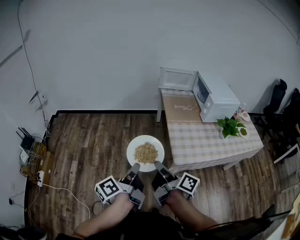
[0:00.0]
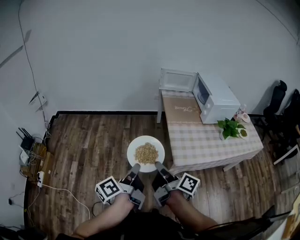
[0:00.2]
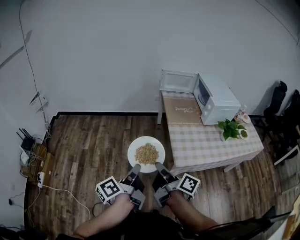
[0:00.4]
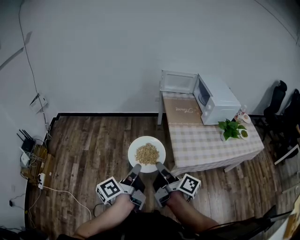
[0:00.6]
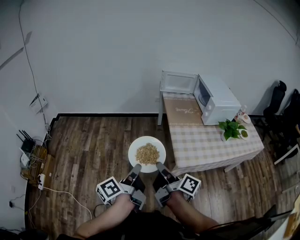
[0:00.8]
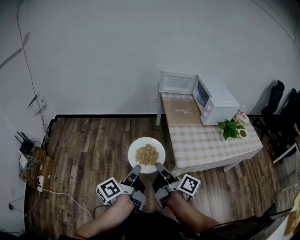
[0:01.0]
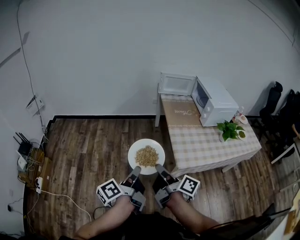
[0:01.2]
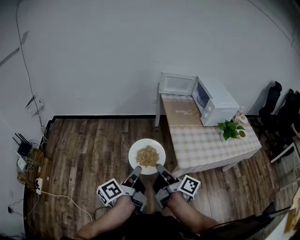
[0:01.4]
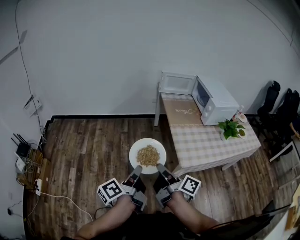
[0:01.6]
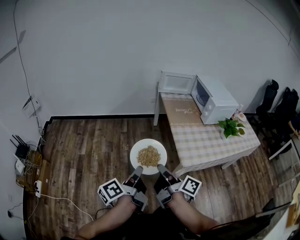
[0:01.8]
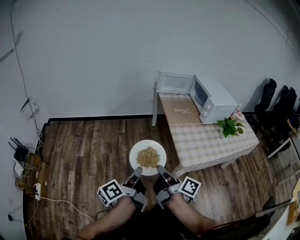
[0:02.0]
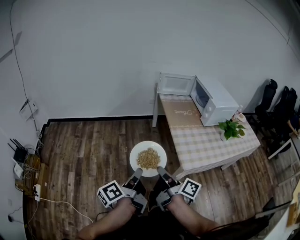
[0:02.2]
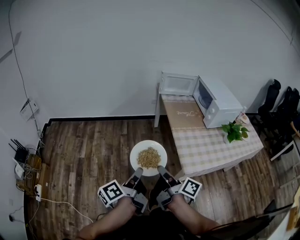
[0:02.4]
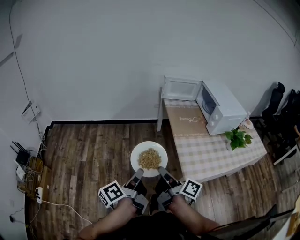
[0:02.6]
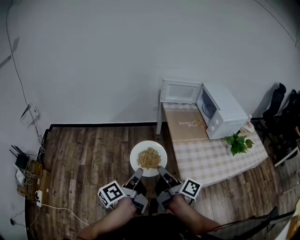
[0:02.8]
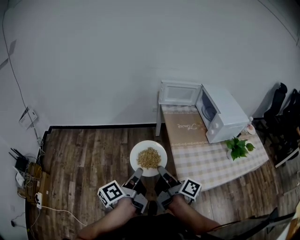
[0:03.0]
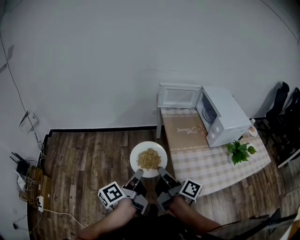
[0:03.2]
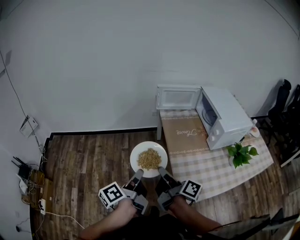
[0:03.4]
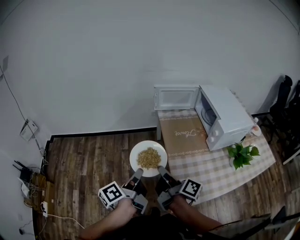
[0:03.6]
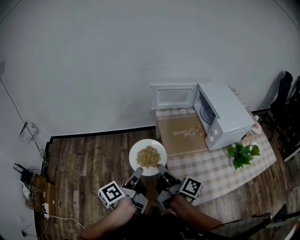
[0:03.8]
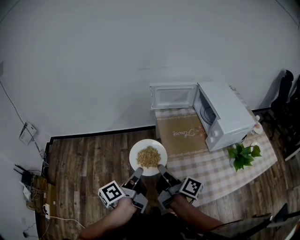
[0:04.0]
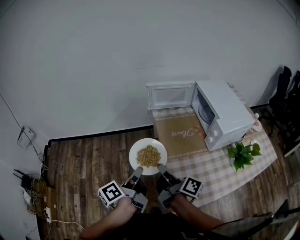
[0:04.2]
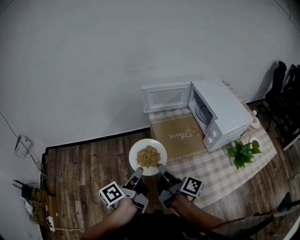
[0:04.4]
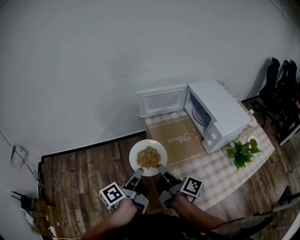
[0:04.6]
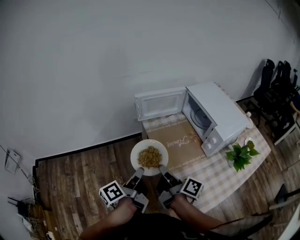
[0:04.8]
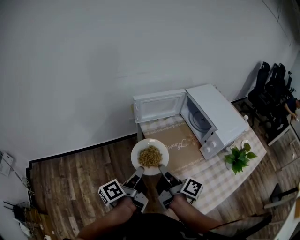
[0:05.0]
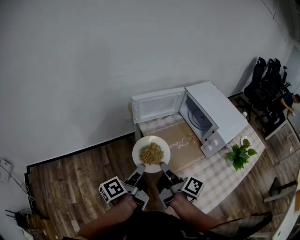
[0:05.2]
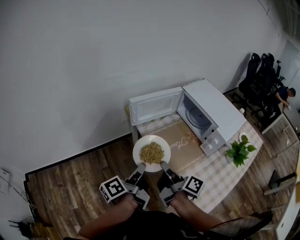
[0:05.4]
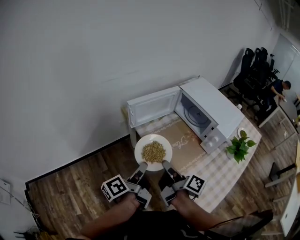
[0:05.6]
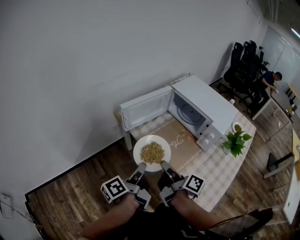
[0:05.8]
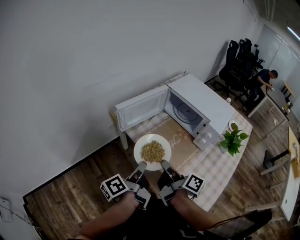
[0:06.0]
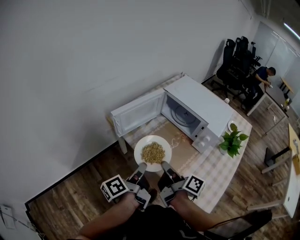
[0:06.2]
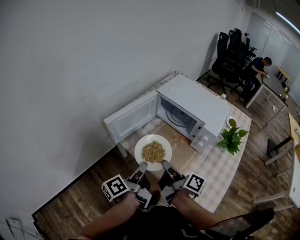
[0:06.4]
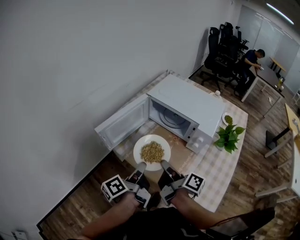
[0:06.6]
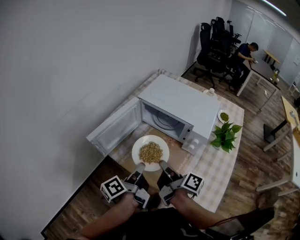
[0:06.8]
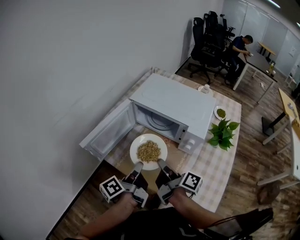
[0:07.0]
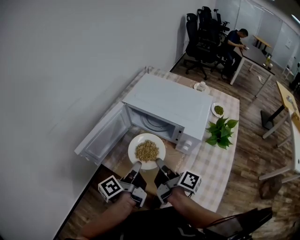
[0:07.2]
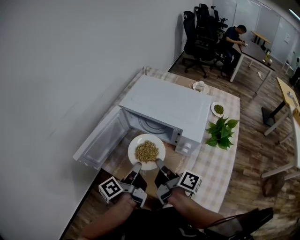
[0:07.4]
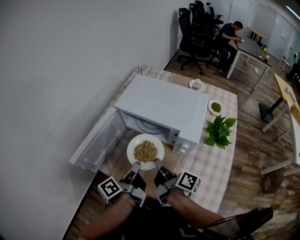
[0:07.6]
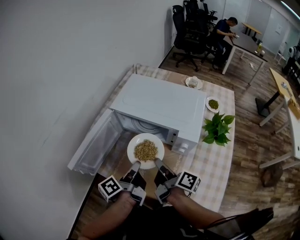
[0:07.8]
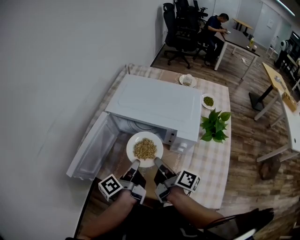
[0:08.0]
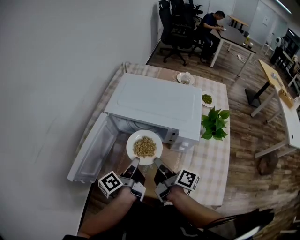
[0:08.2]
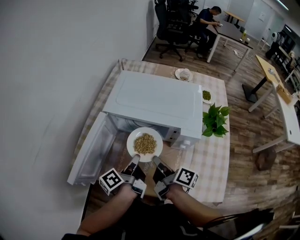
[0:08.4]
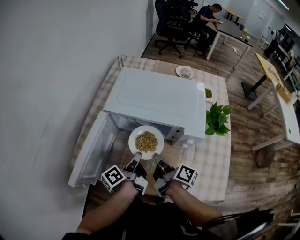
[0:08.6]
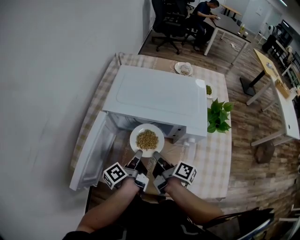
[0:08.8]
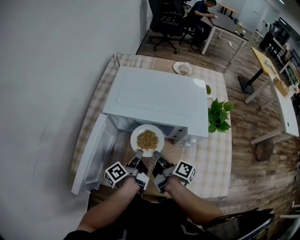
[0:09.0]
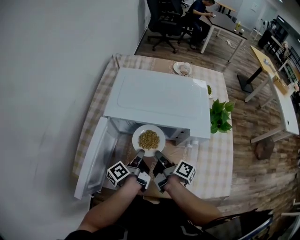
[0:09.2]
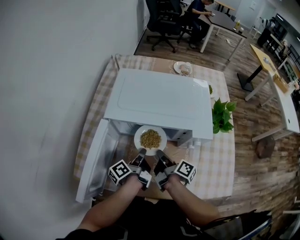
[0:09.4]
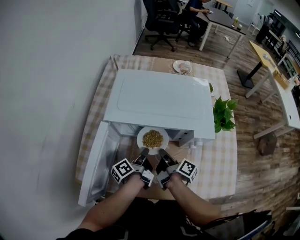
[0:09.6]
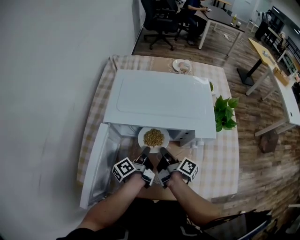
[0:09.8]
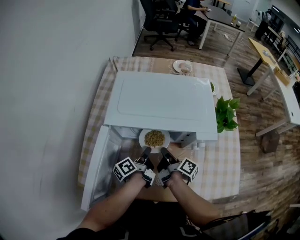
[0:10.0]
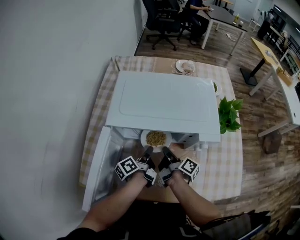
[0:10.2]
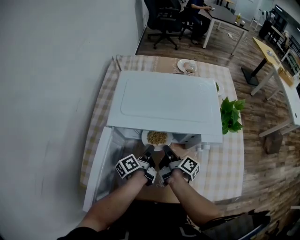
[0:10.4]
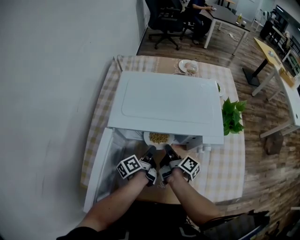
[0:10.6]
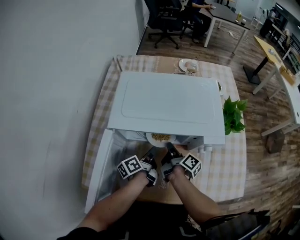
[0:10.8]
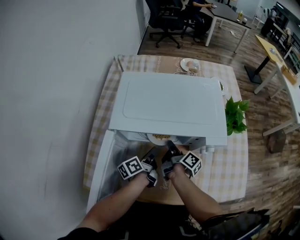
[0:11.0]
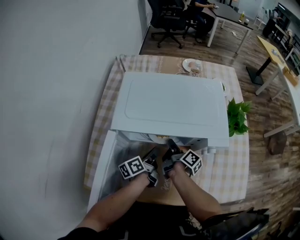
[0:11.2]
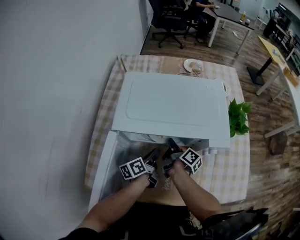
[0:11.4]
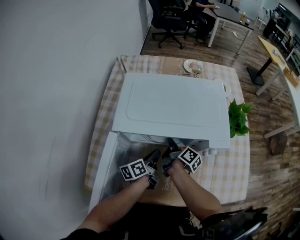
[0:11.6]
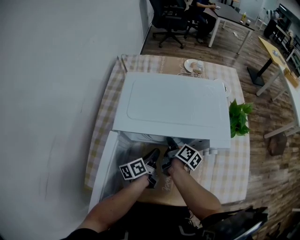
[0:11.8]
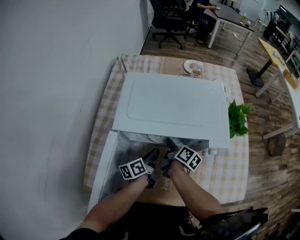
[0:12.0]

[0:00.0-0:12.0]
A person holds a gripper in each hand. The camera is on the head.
0:00.0 to 0:01.6: The left gripper shifts by some 5 cm.
0:01.6 to 0:03.0: The left gripper changes place by some 20 cm.
0:03.0 to 0:04.4: The left gripper shifts by approximately 20 cm.
0:04.4 to 0:06.0: The left gripper ends up about 20 cm from where it was, and changes its angle by about 30 degrees.
0:06.0 to 0:07.6: The left gripper moves some 25 cm.
0:07.6 to 0:09.0: The left gripper changes place by roughly 15 cm.
0:09.0 to 0:10.4: The left gripper ends up roughly 10 cm from where it was.

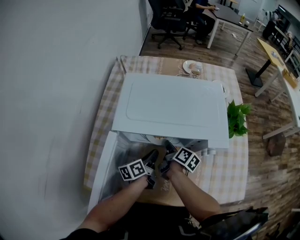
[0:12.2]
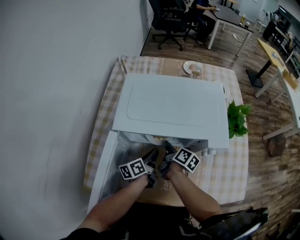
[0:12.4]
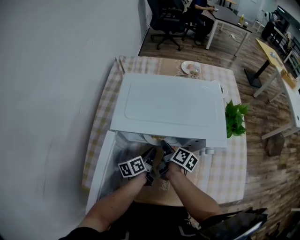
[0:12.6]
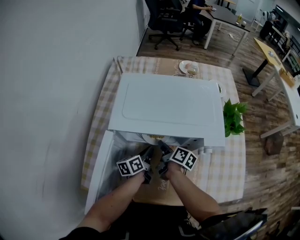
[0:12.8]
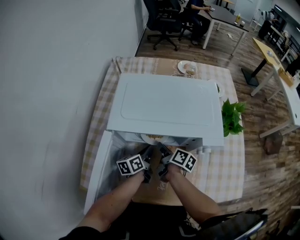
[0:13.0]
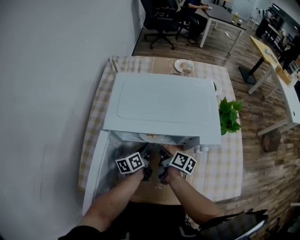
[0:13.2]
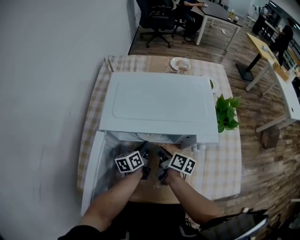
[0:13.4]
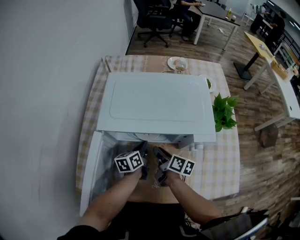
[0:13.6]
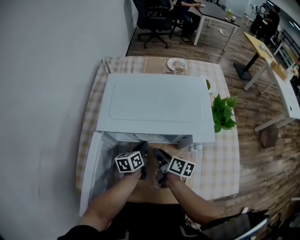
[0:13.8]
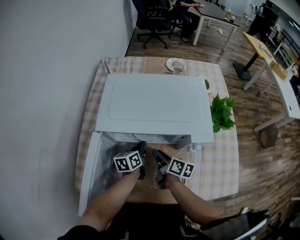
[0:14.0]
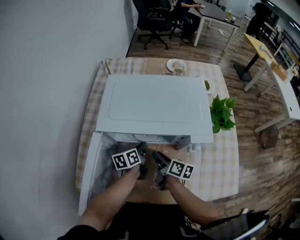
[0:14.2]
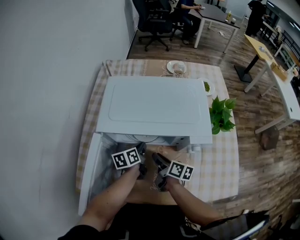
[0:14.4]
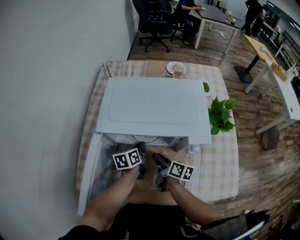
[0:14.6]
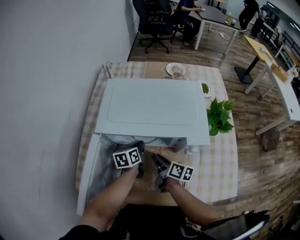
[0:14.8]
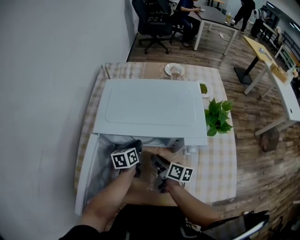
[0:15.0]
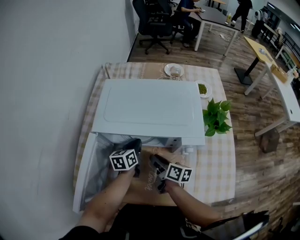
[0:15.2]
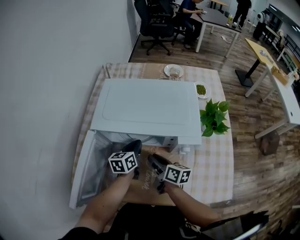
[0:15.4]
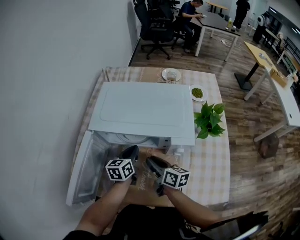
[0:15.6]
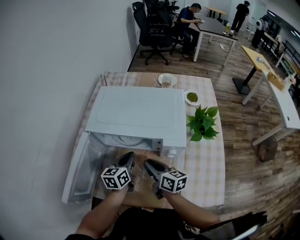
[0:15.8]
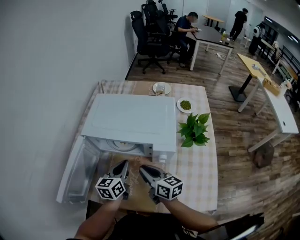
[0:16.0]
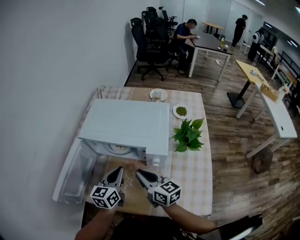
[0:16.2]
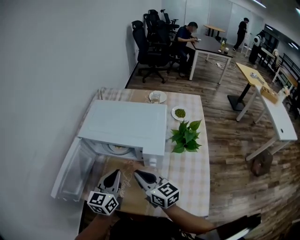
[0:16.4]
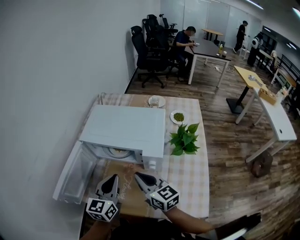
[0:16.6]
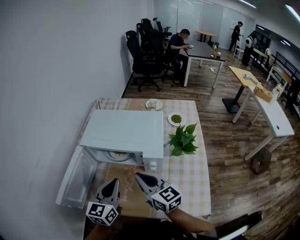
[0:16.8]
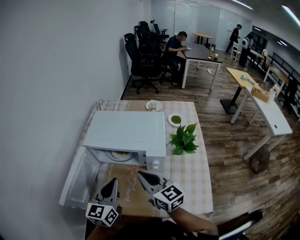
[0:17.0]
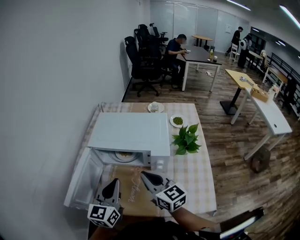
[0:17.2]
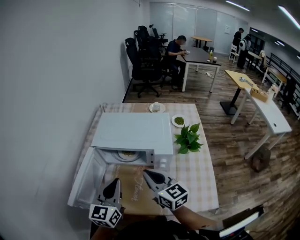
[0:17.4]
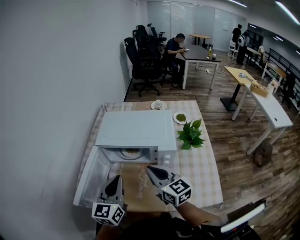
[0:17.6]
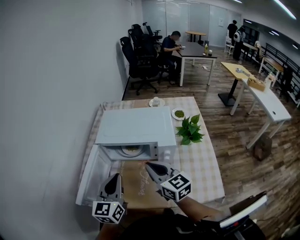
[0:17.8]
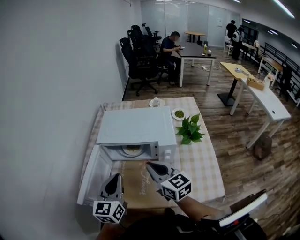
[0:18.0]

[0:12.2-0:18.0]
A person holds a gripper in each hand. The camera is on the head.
0:15.0 to 0:16.6: The left gripper goes some 25 cm upward, and swivels some 40 degrees.
0:16.6 to 0:18.0: The left gripper changes place by about 10 cm.

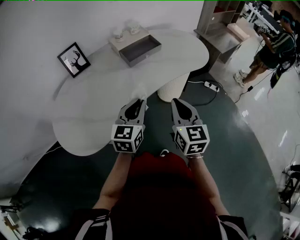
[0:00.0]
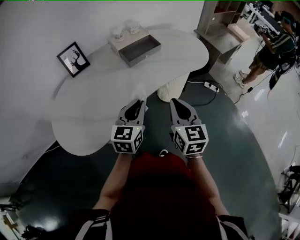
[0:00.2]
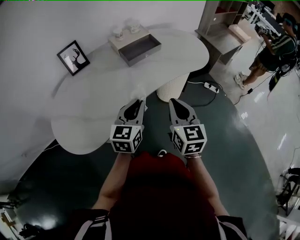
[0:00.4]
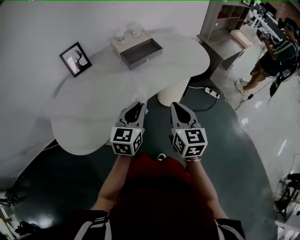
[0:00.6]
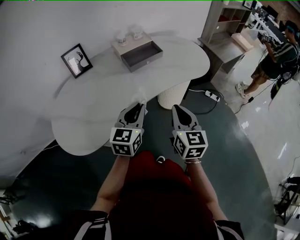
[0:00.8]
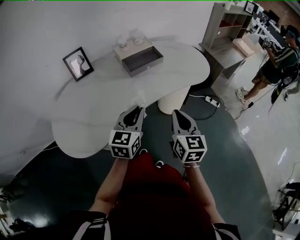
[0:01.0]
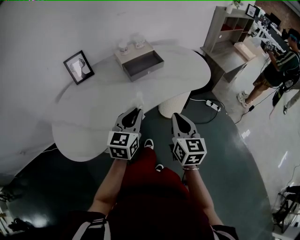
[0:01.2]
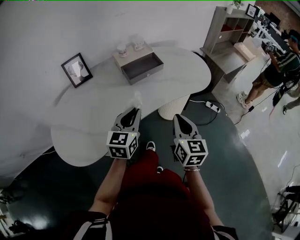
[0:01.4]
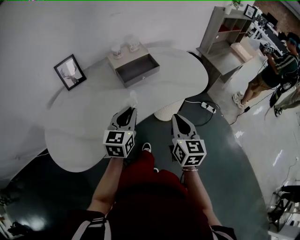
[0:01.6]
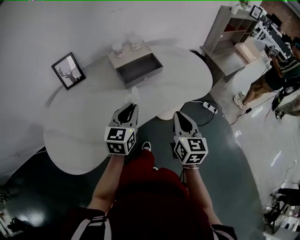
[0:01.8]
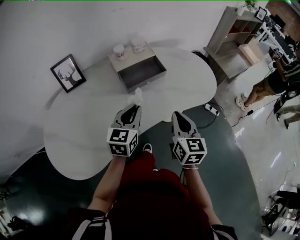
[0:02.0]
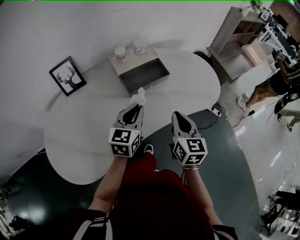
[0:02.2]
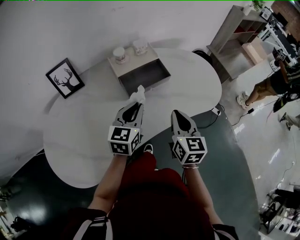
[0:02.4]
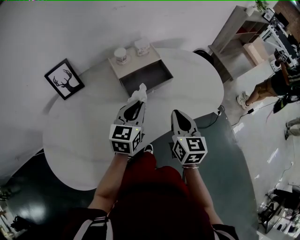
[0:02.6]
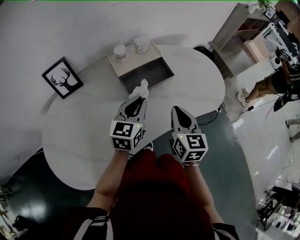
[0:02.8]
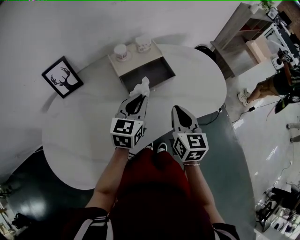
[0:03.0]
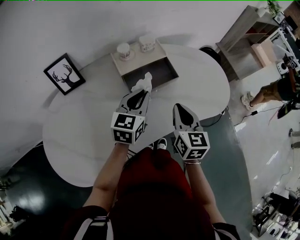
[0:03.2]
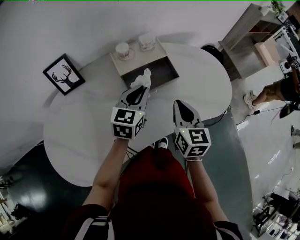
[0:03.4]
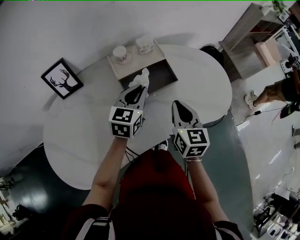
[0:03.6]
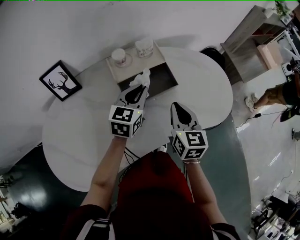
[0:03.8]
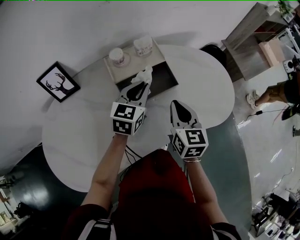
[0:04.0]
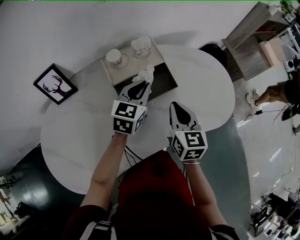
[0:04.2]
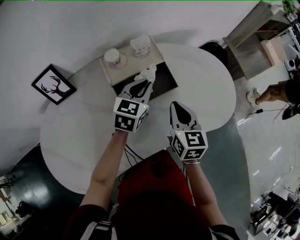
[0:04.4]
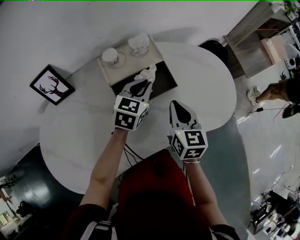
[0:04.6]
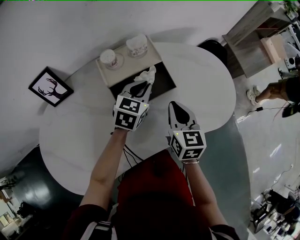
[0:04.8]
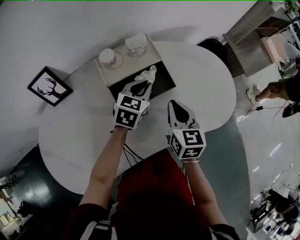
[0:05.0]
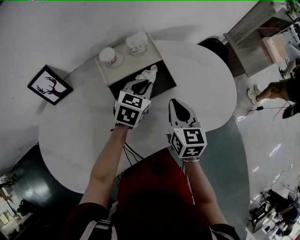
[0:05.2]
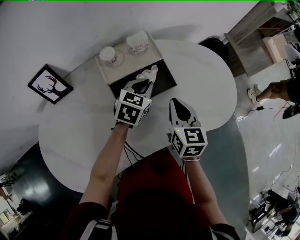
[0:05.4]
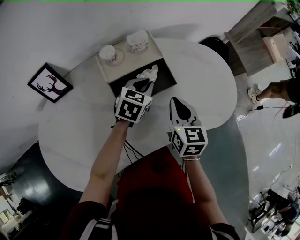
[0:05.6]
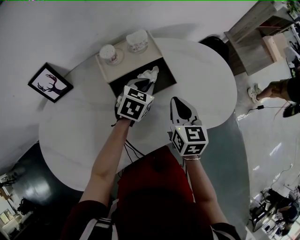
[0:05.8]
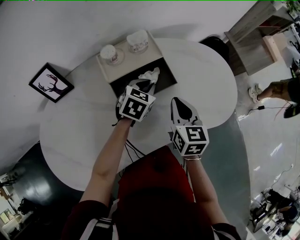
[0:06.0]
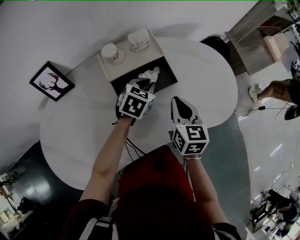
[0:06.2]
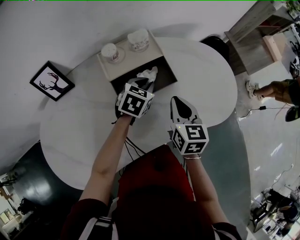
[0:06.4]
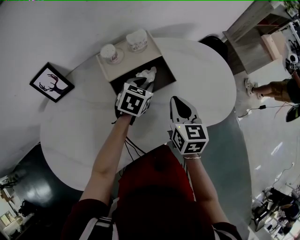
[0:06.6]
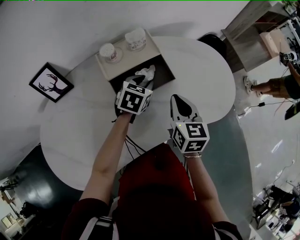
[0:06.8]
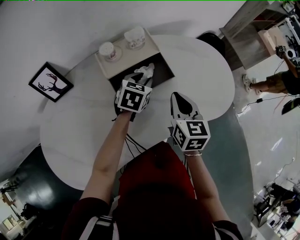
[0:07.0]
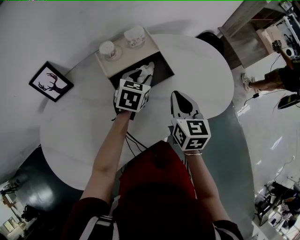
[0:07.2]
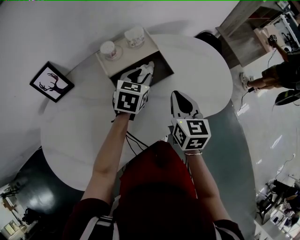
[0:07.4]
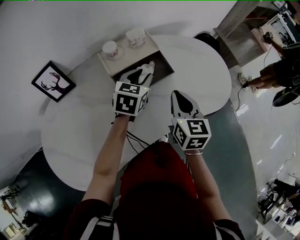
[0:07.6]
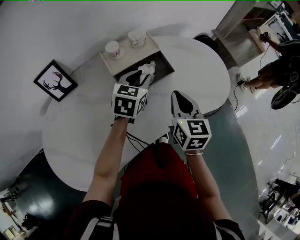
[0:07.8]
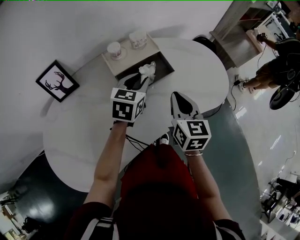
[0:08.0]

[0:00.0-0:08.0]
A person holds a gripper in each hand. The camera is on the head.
0:00.0 to 0:01.6: Both grippers travel together forward, roughly 10 cm.
0:01.6 to 0:03.2: Both grippers move forward, approximately 20 cm.
0:03.2 to 0:04.8: Both grippers move forward and downward, about 10 cm.
0:04.8 to 0:06.4: The grippers move only a little.
0:06.4 to 0:08.0: Both grippers travel together upward and backward, some 10 cm.
